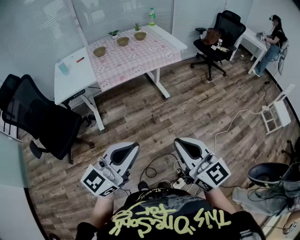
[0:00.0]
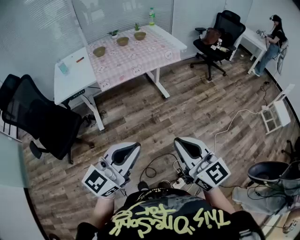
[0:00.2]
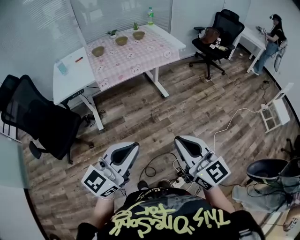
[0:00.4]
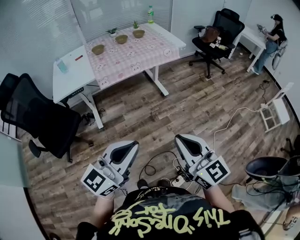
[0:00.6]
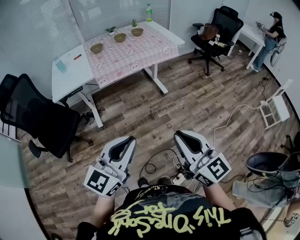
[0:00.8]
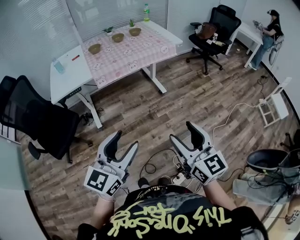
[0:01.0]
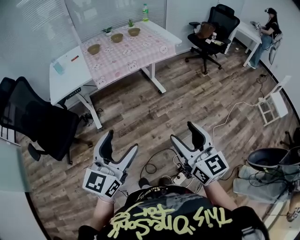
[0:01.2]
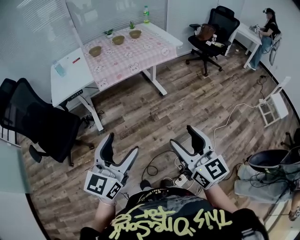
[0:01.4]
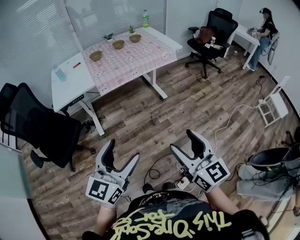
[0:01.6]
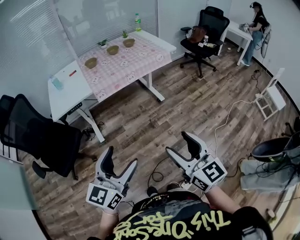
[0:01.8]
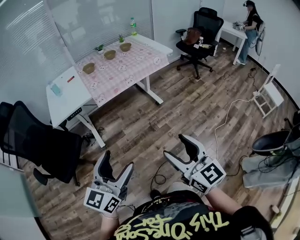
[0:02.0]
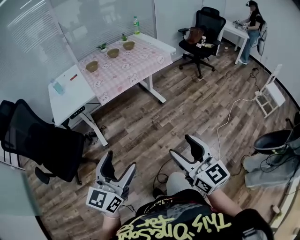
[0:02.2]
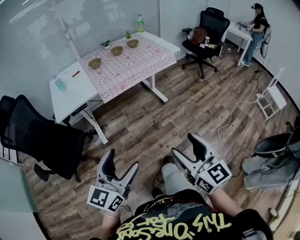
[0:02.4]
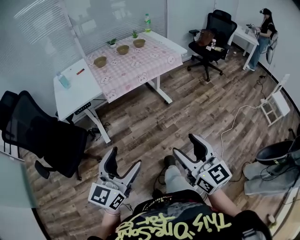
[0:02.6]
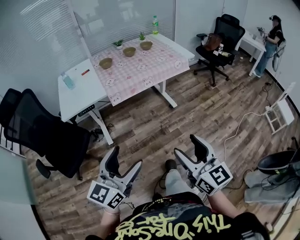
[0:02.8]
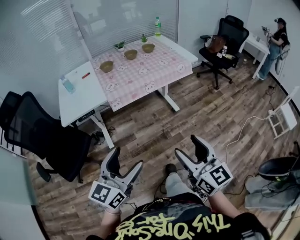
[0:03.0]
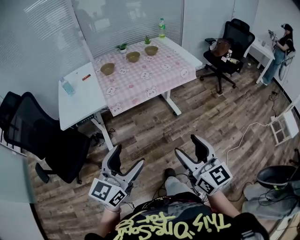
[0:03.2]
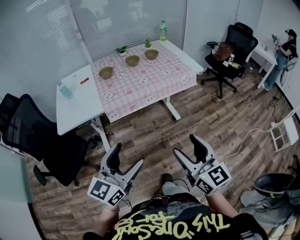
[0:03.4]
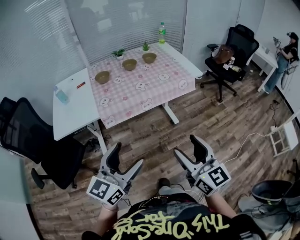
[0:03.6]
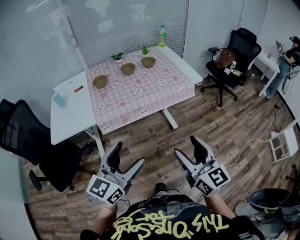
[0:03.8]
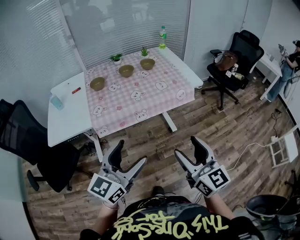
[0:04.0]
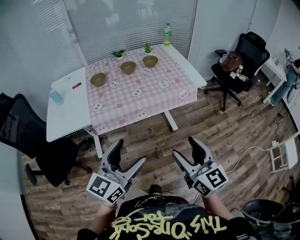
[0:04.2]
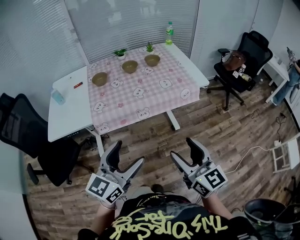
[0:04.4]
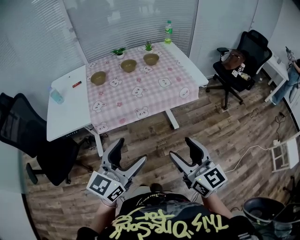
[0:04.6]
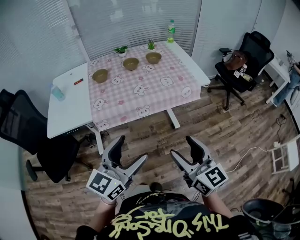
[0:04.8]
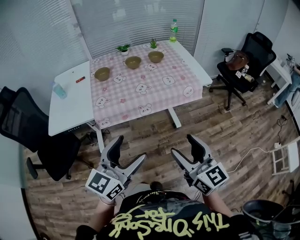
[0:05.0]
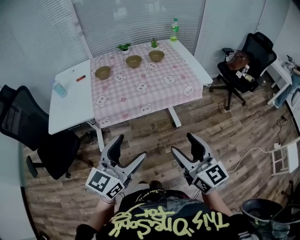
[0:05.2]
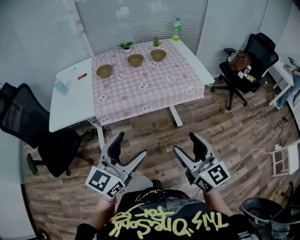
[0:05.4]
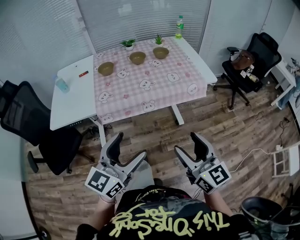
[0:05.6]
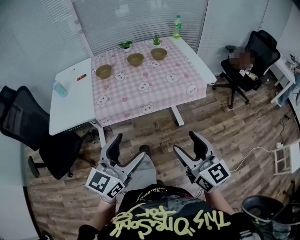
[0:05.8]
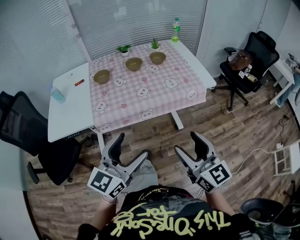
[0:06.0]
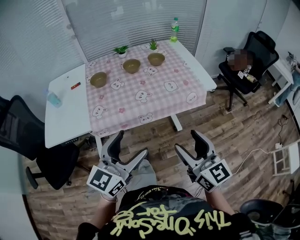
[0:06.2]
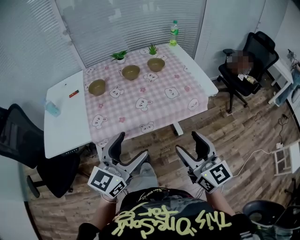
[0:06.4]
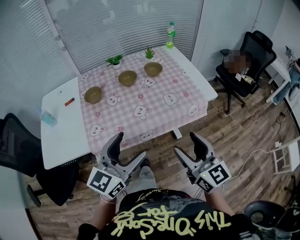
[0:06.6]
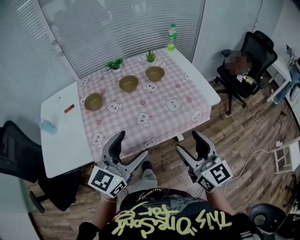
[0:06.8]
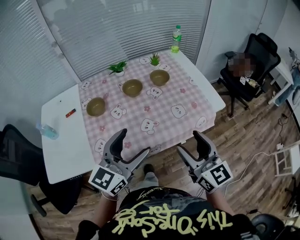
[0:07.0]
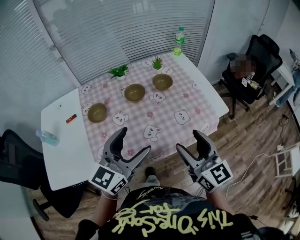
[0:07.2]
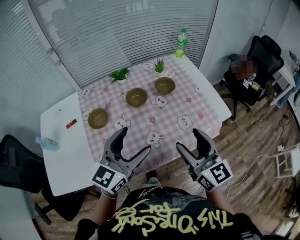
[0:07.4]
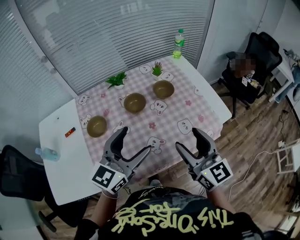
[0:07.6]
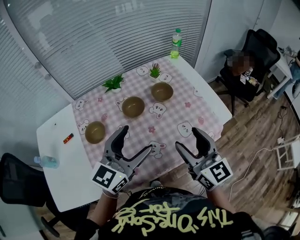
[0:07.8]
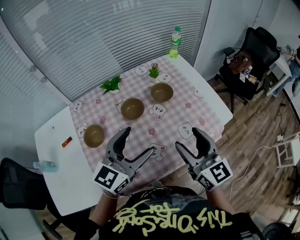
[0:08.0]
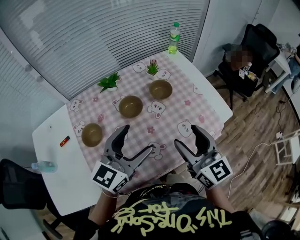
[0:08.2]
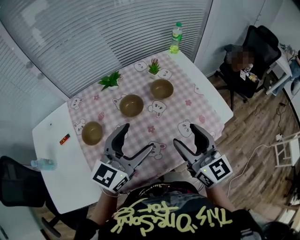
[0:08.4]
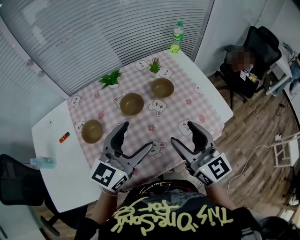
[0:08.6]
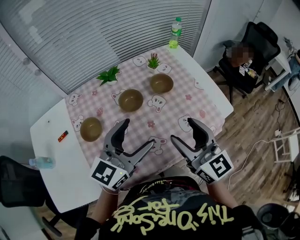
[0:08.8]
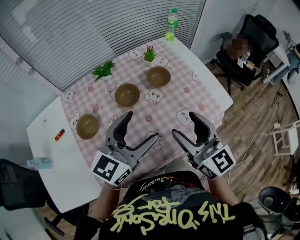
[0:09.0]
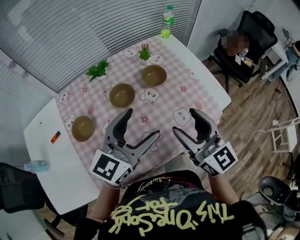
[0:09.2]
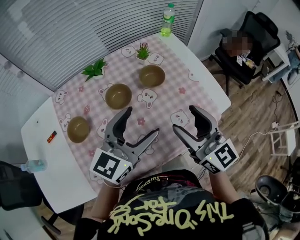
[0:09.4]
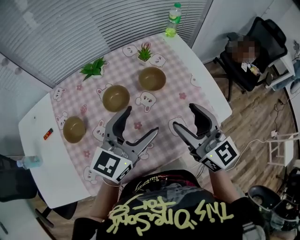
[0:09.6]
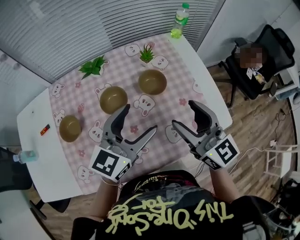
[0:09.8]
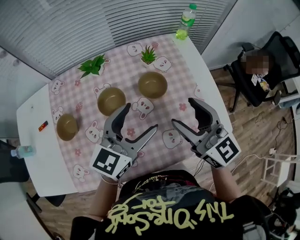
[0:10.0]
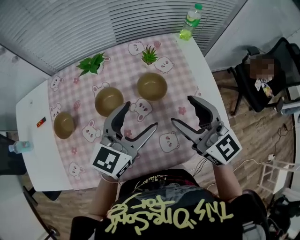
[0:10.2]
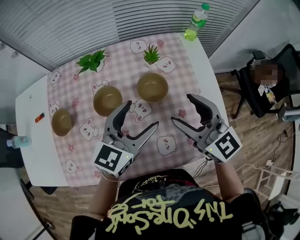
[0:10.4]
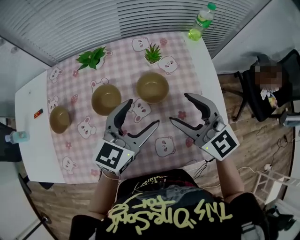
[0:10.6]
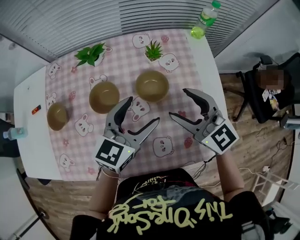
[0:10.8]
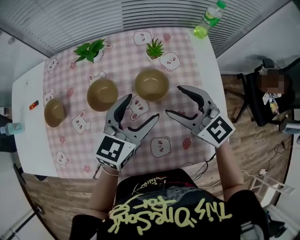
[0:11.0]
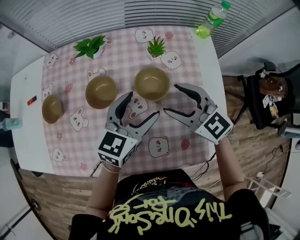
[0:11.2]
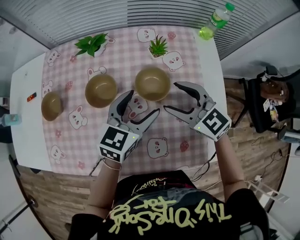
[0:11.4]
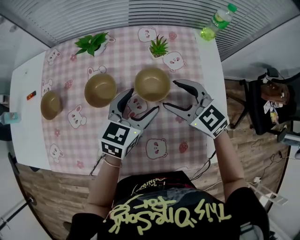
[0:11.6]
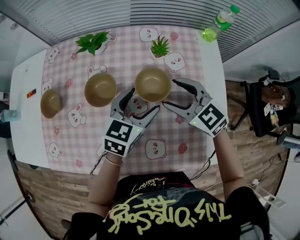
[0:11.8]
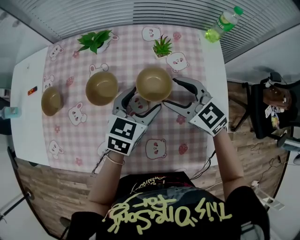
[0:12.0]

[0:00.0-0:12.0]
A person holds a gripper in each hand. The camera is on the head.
0:00.0 to 0:01.6: The right gripper opens, while the left gripper travels to the left by about 5 cm, and opens.
0:01.6 to 0:03.0: Both grippers travel together forward and to the left, roughly 10 cm.
0:03.0 to 0:04.4: The right gripper shifts approximately 25 cm forward. Meanwhile the left gripper goes about 25 cm forward and to the right.
0:04.4 to 0:06.0: Both grippers travel together forward, some 5 cm.
0:06.0 to 0:07.6: Both grippers move forward, some 30 cm.
0:07.6 to 0:09.0: The right gripper ends up approximately 5 cm from where it was. The left gripper travels forward by approximately 5 cm.
0:09.0 to 0:10.4: The left gripper moves forward, to the right and downward, about 20 cm, and swivels some 20 degrees, while the right gripper goes roughly 15 cm forward, and turns by some 30 degrees.
0:10.4 to 0:12.0: Both grippers travel together downward and forward, approximately 15 cm. The left gripper rotates approximately 20 degrees. Meanwhile the right gripper turns by some 30 degrees.

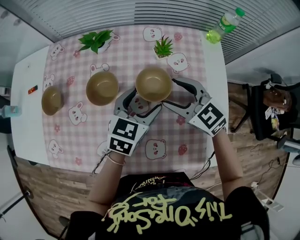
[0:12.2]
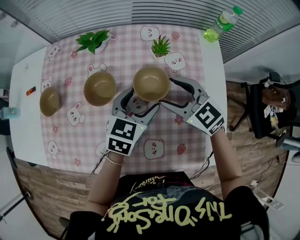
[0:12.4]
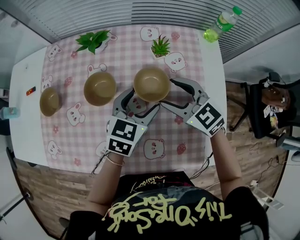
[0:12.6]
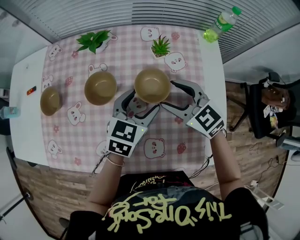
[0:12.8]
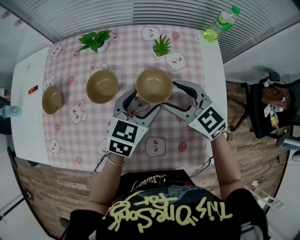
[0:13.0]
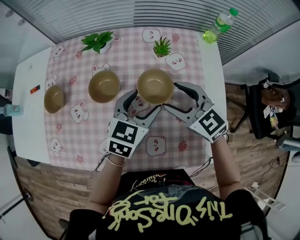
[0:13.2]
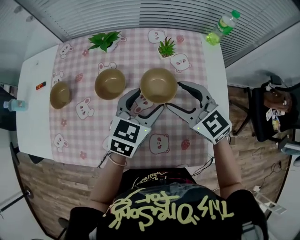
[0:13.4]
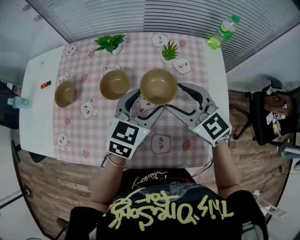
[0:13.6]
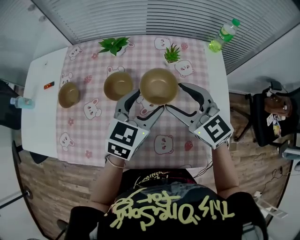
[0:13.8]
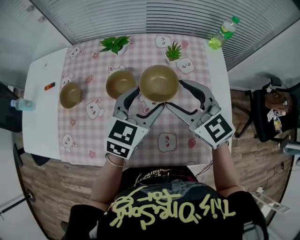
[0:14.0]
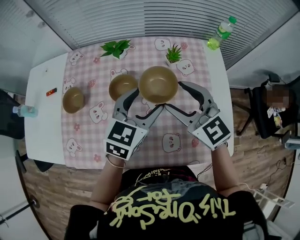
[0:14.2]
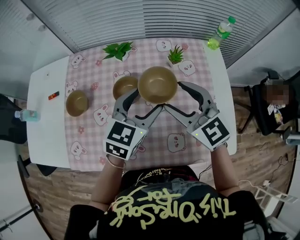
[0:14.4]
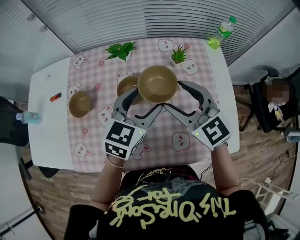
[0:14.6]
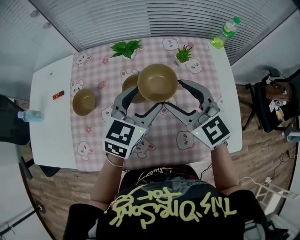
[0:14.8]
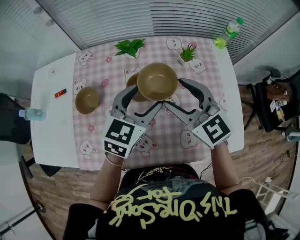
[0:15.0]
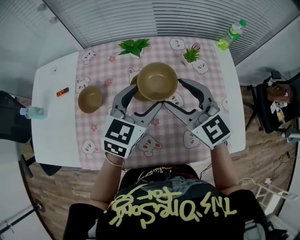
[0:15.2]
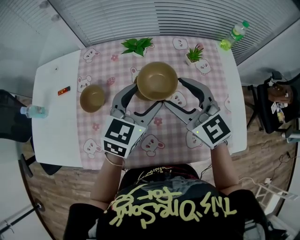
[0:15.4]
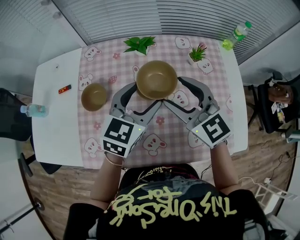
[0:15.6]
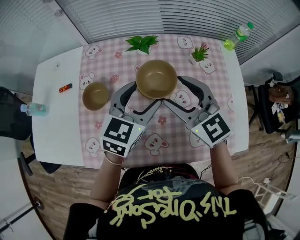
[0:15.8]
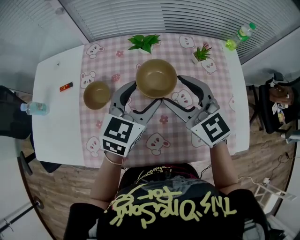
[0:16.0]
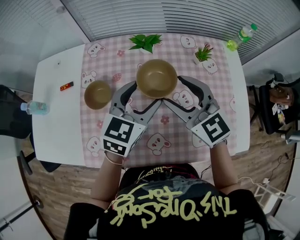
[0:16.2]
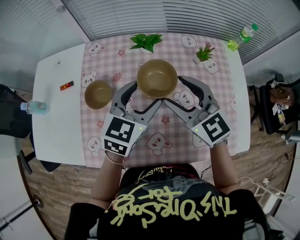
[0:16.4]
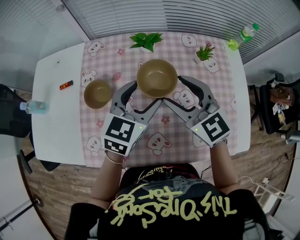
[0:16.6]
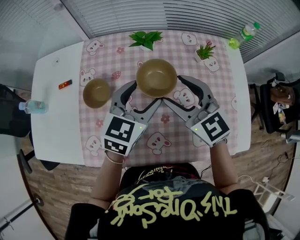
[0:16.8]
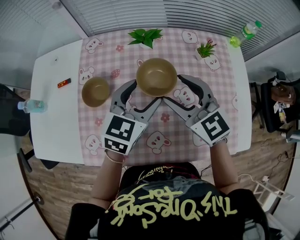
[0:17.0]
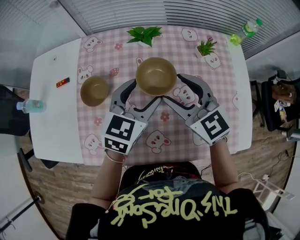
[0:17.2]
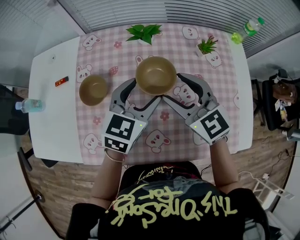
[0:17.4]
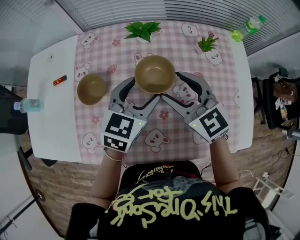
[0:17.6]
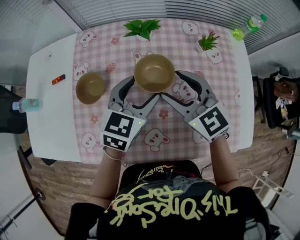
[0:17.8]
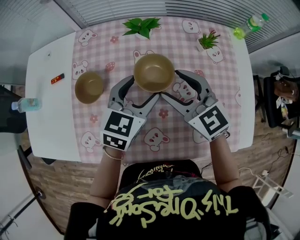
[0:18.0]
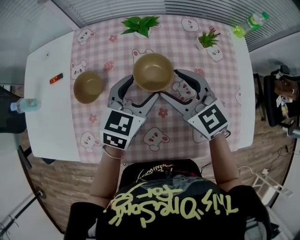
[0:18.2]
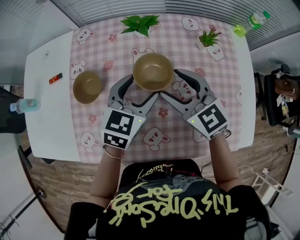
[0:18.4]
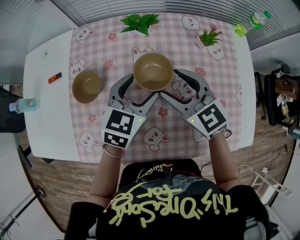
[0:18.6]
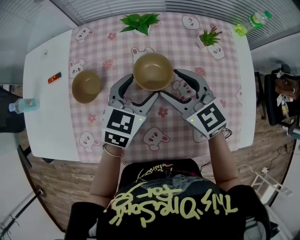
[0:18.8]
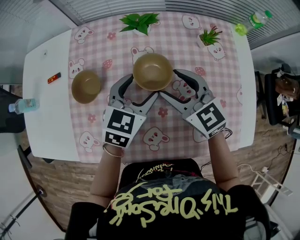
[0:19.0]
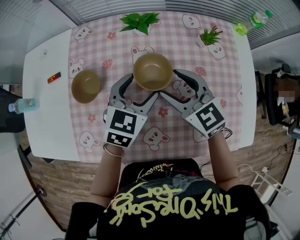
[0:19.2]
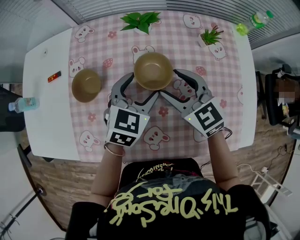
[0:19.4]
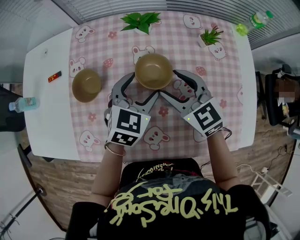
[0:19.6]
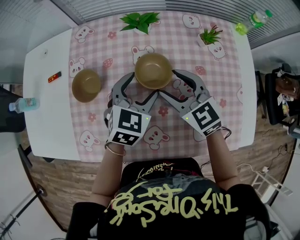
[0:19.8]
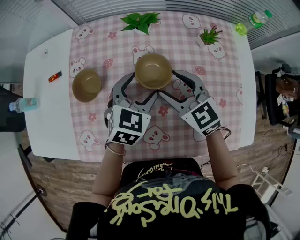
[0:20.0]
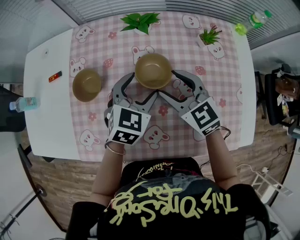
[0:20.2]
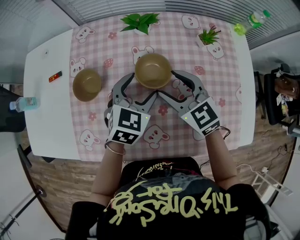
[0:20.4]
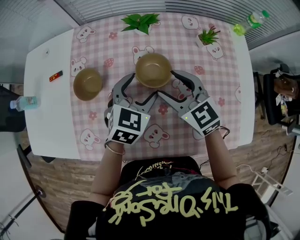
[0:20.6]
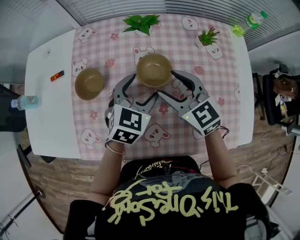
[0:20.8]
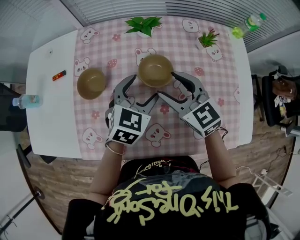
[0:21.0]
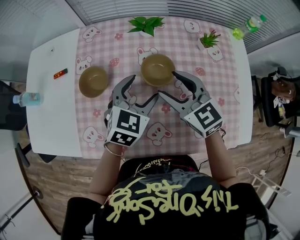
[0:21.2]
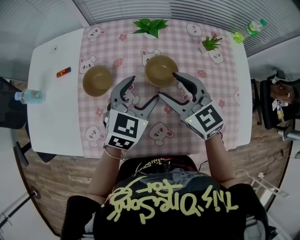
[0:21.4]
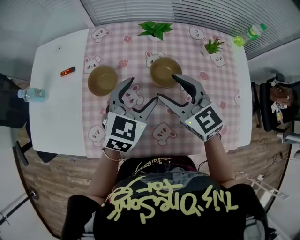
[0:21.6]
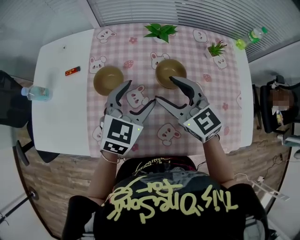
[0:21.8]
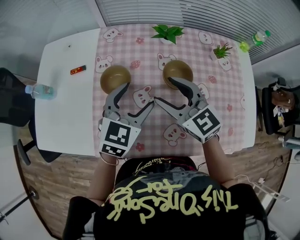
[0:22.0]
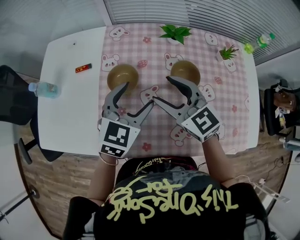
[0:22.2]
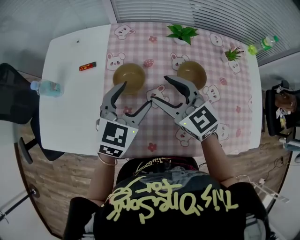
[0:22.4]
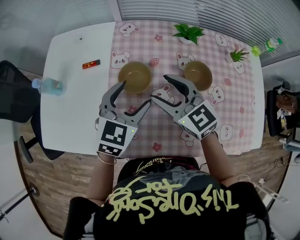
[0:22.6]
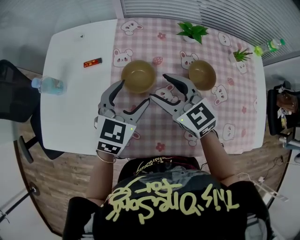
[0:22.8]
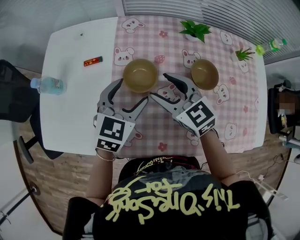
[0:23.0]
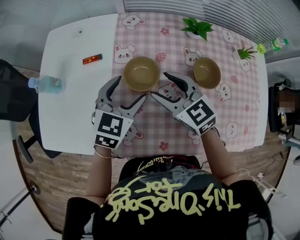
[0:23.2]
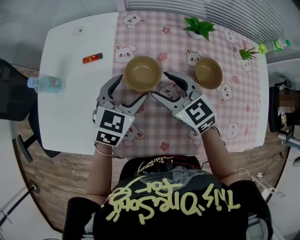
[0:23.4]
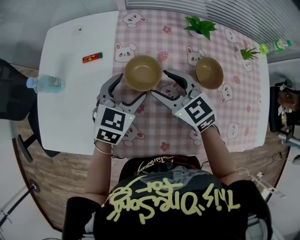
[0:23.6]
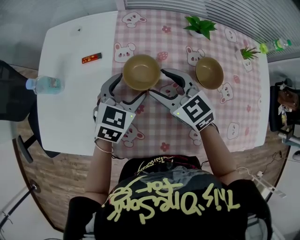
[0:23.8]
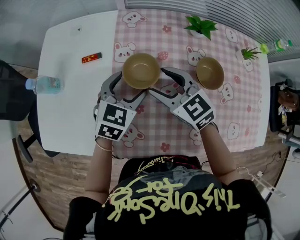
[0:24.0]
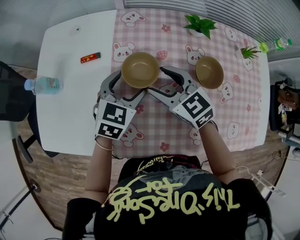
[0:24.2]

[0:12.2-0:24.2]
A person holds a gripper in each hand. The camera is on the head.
0:12.2 to 0:13.8: The two grippers go approximately 10 cm upward.
0:13.8 to 0:15.2: The grippers both shift to the left by roughly 10 cm.
0:15.2 to 0:16.6: The grippers stay close to where they were, moving slightly.
0:16.6 to 0:18.2: The grippers both shift downward by approximately 5 cm.
0:18.2 to 0:21.2: There are only small adjustments of the grippers.
0:21.2 to 0:22.6: Both grippers move to the left, some 15 cm.
0:22.6 to 0:24.2: The two grippers go some 5 cm downward.
